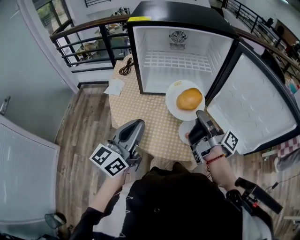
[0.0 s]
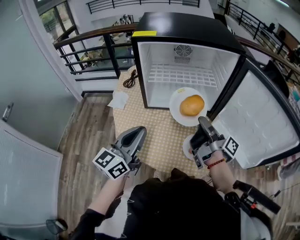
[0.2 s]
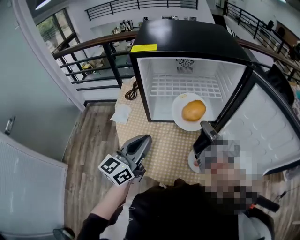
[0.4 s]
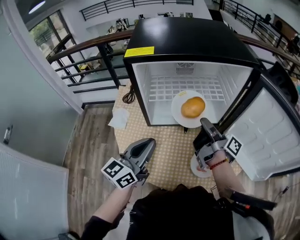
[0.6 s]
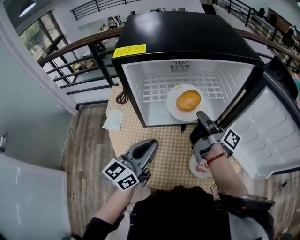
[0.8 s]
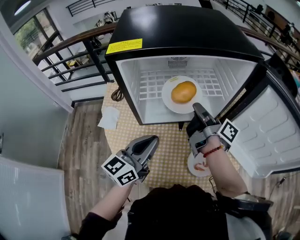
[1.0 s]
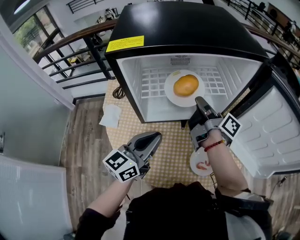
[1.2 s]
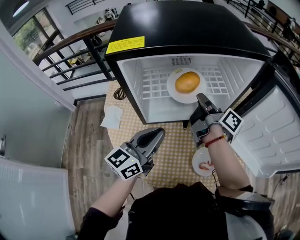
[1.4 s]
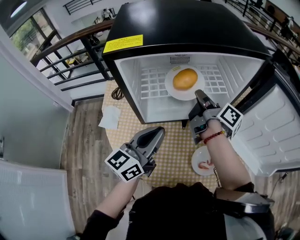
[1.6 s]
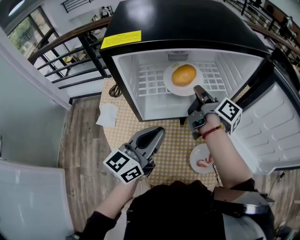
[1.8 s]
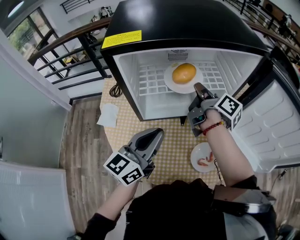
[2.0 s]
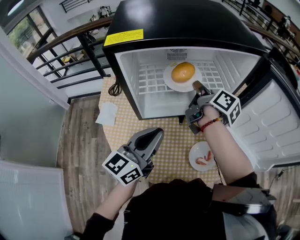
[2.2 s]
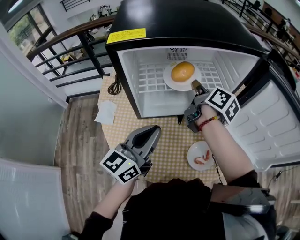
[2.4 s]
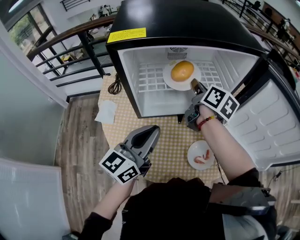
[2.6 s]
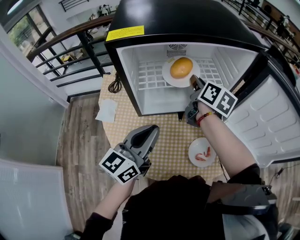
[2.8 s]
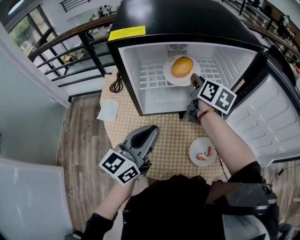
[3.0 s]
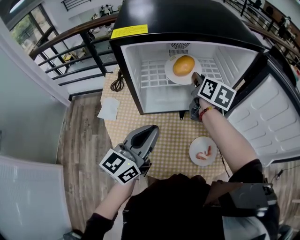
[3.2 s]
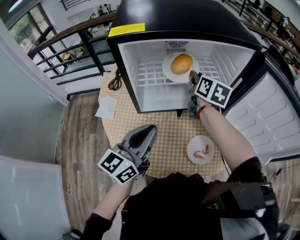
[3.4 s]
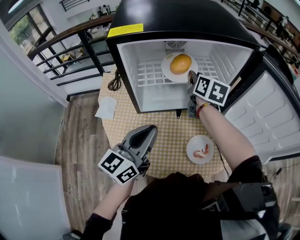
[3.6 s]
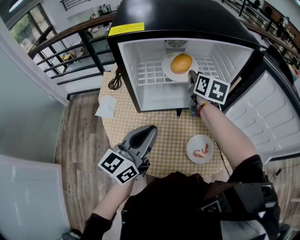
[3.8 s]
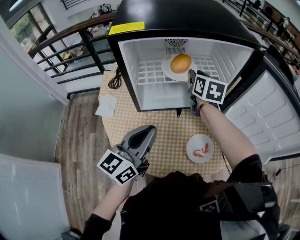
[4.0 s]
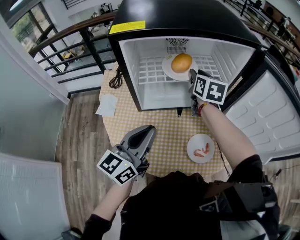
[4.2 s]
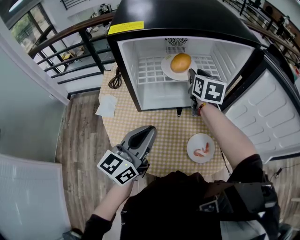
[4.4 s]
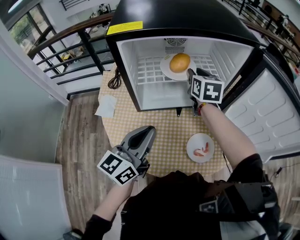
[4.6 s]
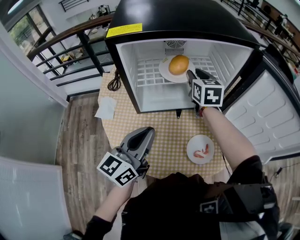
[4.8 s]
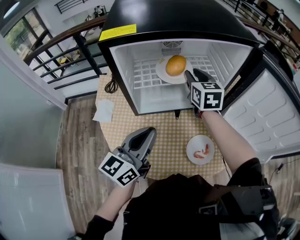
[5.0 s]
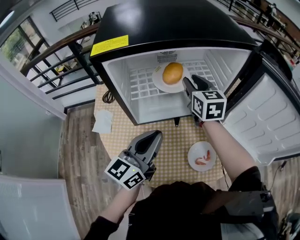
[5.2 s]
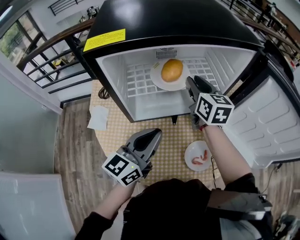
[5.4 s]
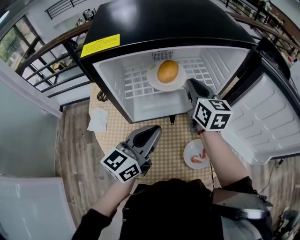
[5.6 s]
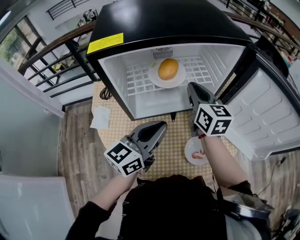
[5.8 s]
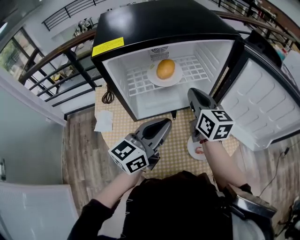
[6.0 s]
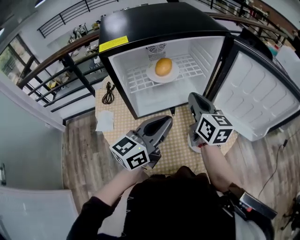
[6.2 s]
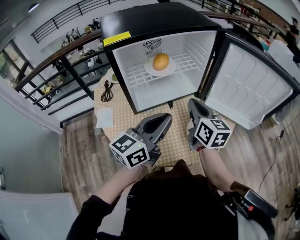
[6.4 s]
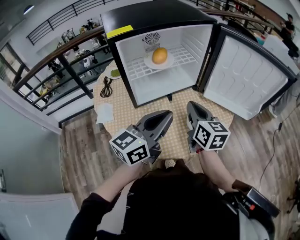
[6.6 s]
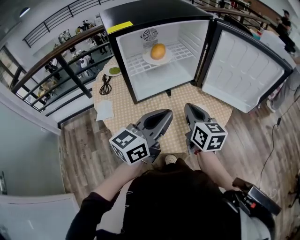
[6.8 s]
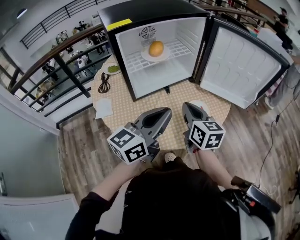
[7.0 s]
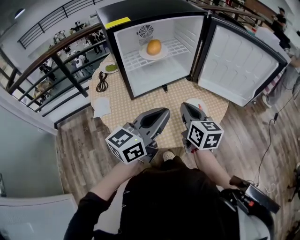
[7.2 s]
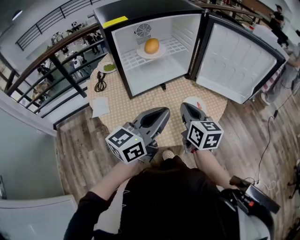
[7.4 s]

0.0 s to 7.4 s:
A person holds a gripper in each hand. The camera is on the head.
0.0 to 1.4 s: Both grippers move forward, roughly 20 cm.
1.4 to 3.0 s: The right gripper twists roughly 50 degrees counterclockwise, seen from behind.
3.0 to 4.4 s: The right gripper swivels roughly 20 degrees.
4.4 to 6.0 s: The left gripper shifts about 5 cm to the right; the right gripper heads backward, covering some 10 cm, and closes.
6.0 to 7.4 s: The right gripper moves backward and to the right, some 15 cm, while the left gripper is displaced backward by roughly 10 cm.

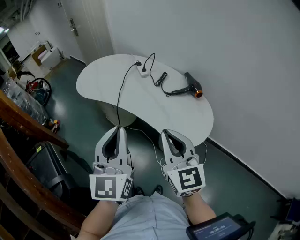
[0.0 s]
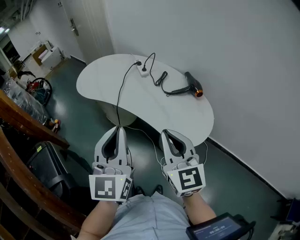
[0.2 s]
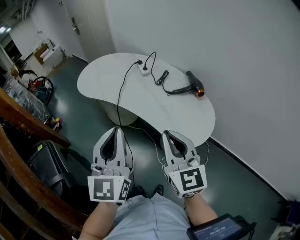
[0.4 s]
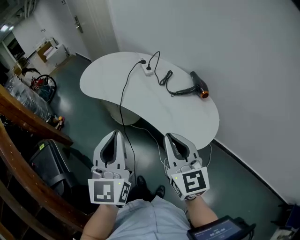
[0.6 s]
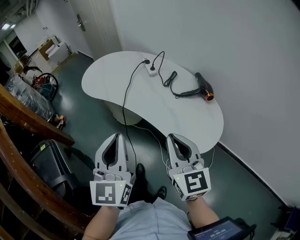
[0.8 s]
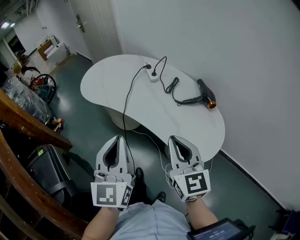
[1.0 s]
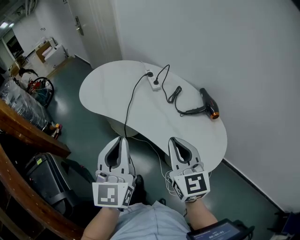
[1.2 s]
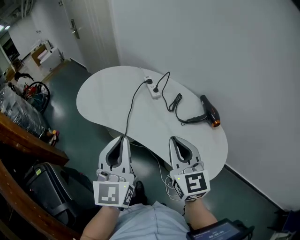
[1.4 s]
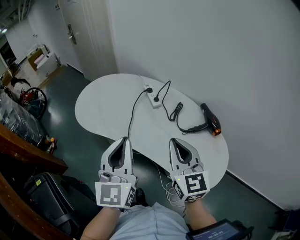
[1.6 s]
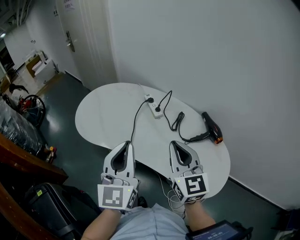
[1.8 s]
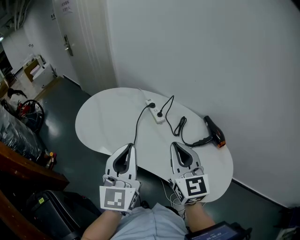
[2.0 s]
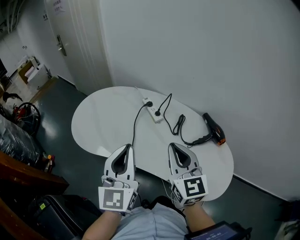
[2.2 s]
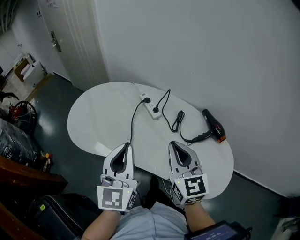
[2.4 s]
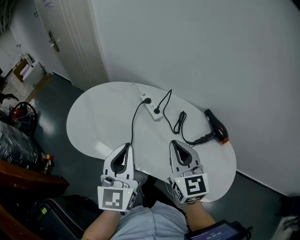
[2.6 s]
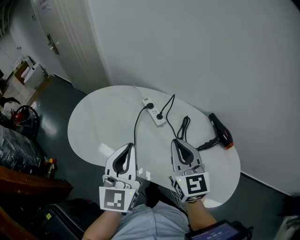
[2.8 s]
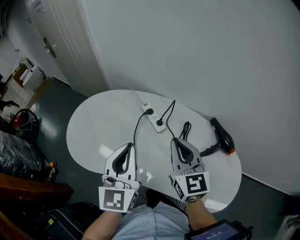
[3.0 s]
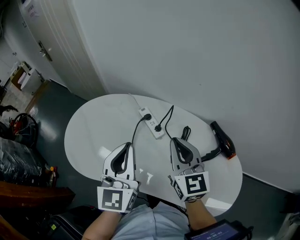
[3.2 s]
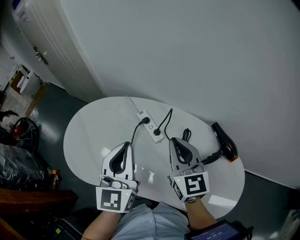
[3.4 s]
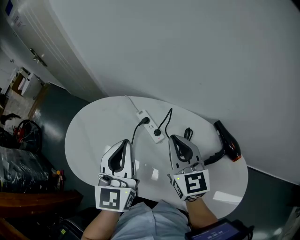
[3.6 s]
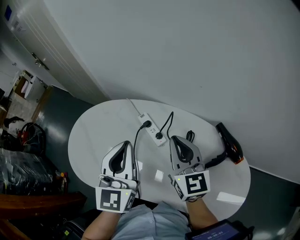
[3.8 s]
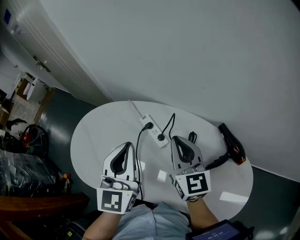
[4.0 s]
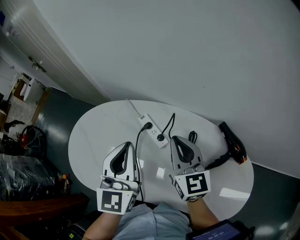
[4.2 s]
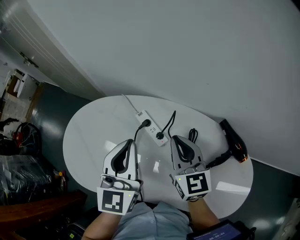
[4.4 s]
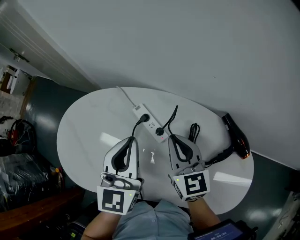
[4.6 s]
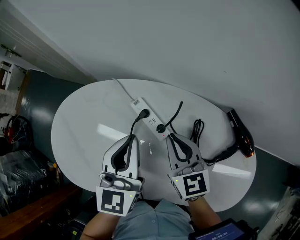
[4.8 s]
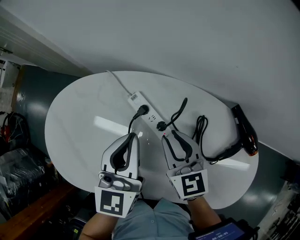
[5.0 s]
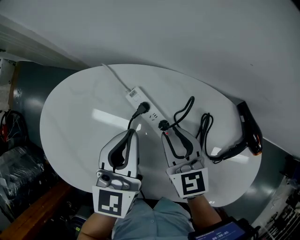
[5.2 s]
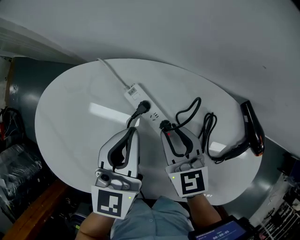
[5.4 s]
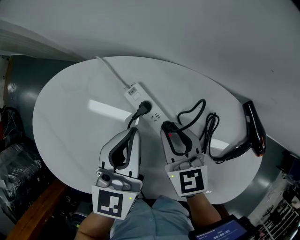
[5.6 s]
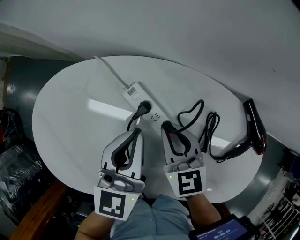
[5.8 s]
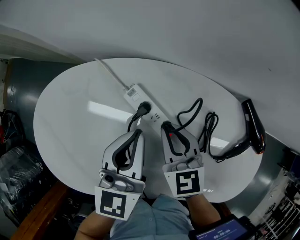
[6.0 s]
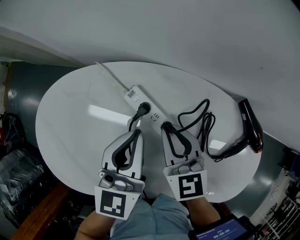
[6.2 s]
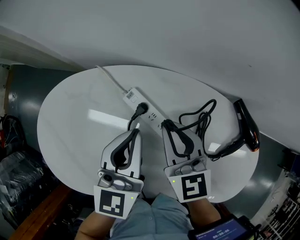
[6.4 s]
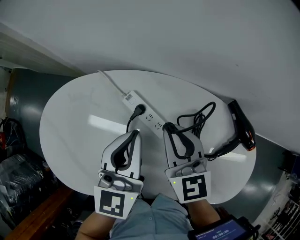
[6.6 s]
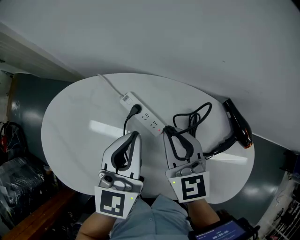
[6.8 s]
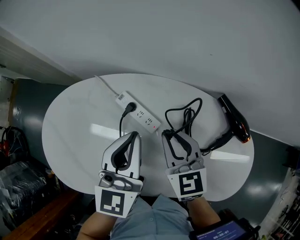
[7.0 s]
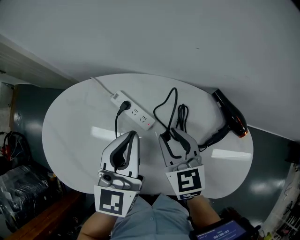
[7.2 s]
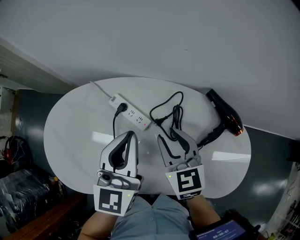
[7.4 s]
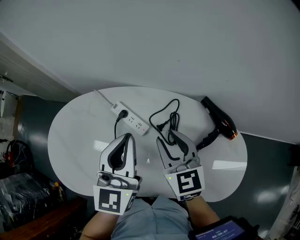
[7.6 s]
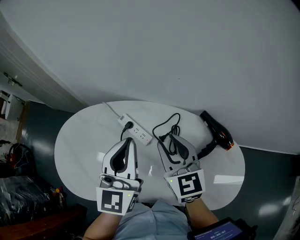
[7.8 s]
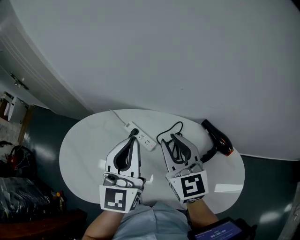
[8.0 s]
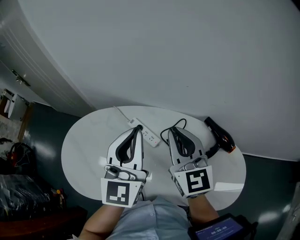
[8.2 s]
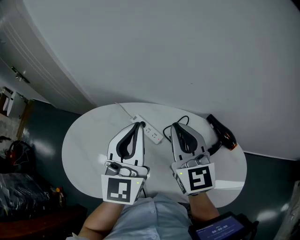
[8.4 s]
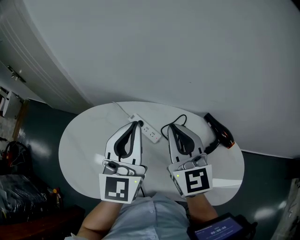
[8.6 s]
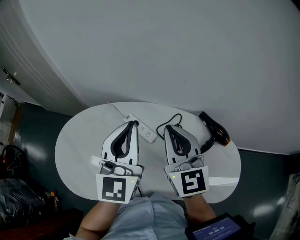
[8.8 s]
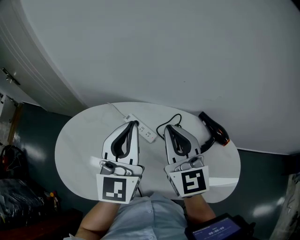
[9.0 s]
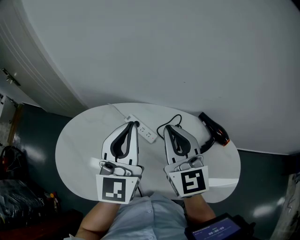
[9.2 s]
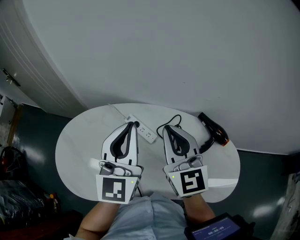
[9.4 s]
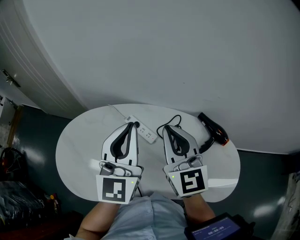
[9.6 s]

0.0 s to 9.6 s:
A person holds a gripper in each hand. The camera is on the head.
0.0 to 1.6 s: The two grippers go roughly 20 cm forward.
1.6 to 3.2 s: Both grippers travel together forward, roughly 20 cm.
3.2 to 4.8 s: The left gripper moves forward and downward, about 15 cm, while the right gripper is displaced downward and forward by about 15 cm.
6.4 to 8.0 s: The right gripper moves upward, to the right and backward, some 15 cm; the left gripper is displaced upward by approximately 15 cm, and rotates roughly 20 degrees.
8.0 to 9.6 s: The right gripper changes place by about 5 cm, and closes its fingers.

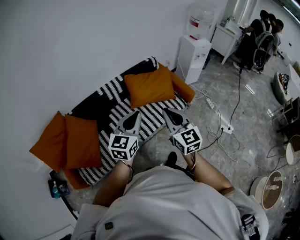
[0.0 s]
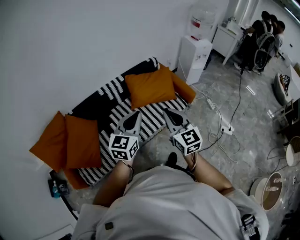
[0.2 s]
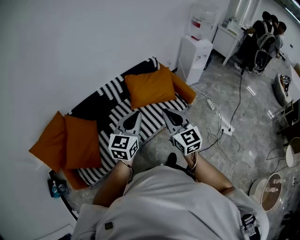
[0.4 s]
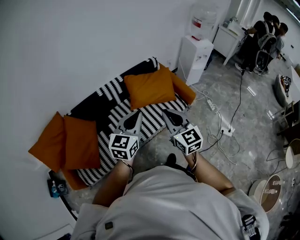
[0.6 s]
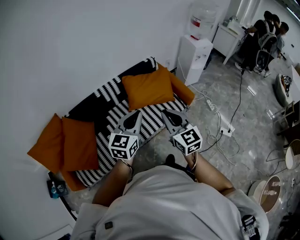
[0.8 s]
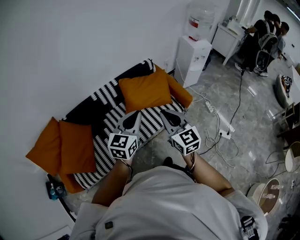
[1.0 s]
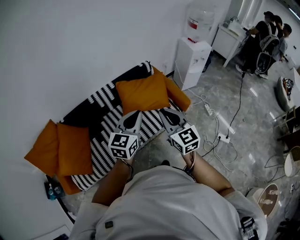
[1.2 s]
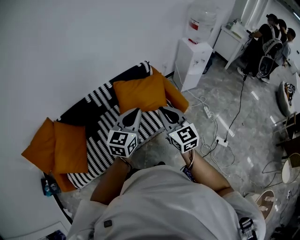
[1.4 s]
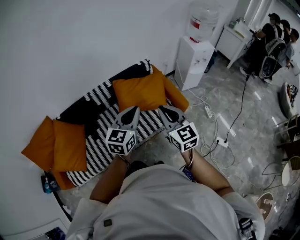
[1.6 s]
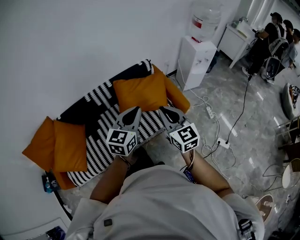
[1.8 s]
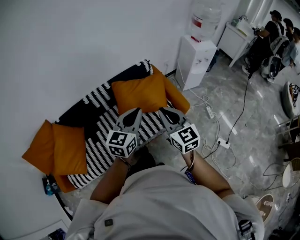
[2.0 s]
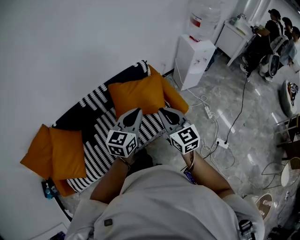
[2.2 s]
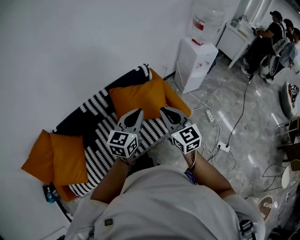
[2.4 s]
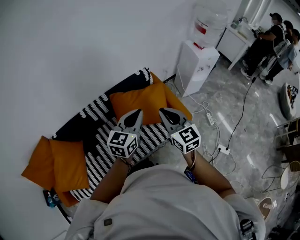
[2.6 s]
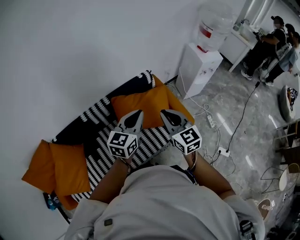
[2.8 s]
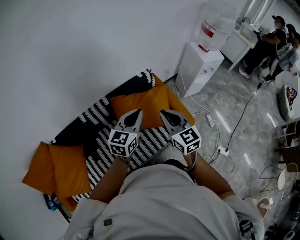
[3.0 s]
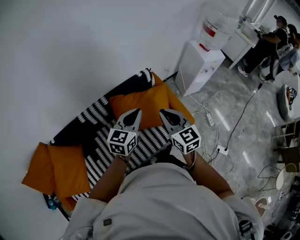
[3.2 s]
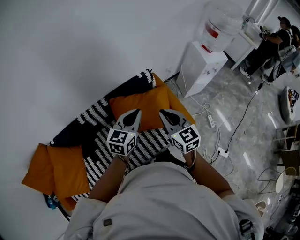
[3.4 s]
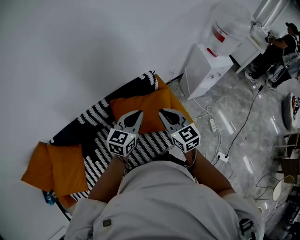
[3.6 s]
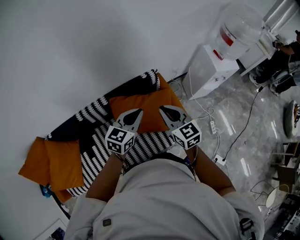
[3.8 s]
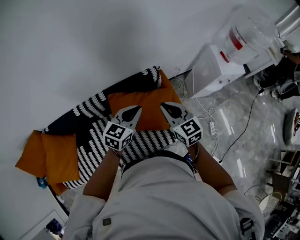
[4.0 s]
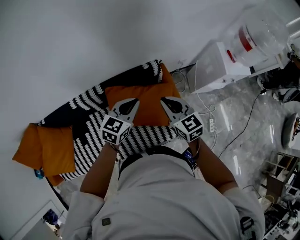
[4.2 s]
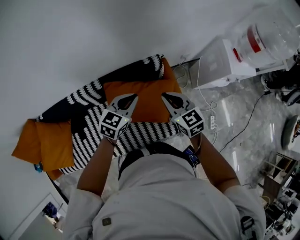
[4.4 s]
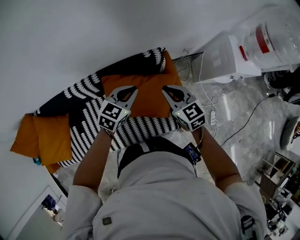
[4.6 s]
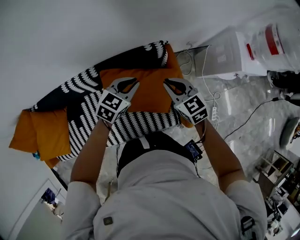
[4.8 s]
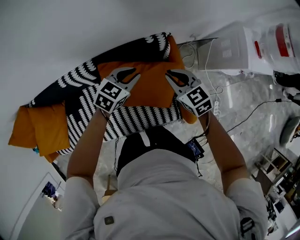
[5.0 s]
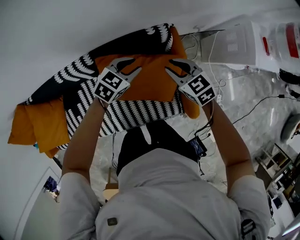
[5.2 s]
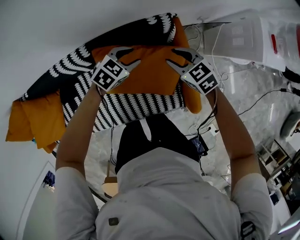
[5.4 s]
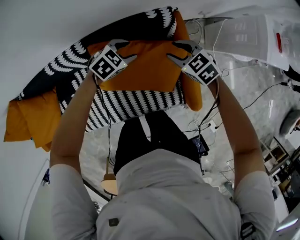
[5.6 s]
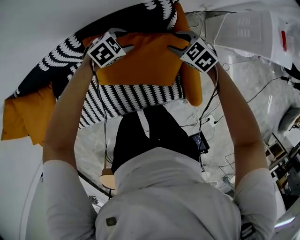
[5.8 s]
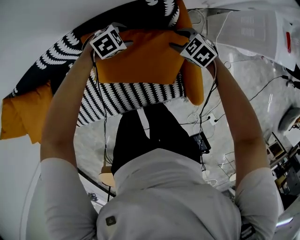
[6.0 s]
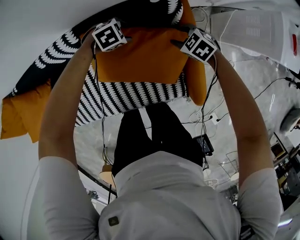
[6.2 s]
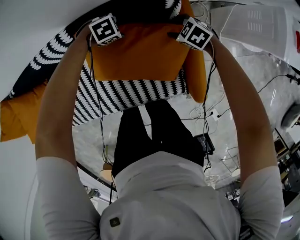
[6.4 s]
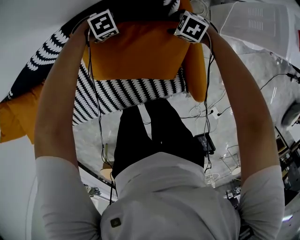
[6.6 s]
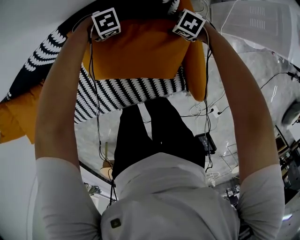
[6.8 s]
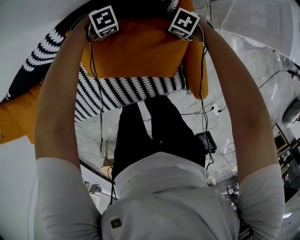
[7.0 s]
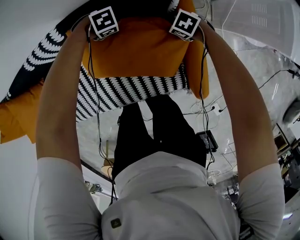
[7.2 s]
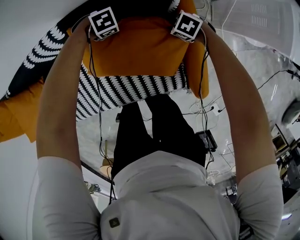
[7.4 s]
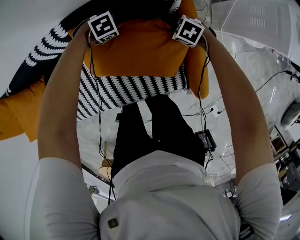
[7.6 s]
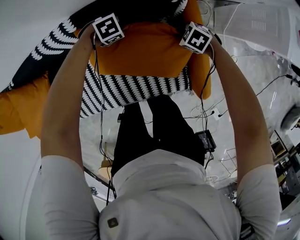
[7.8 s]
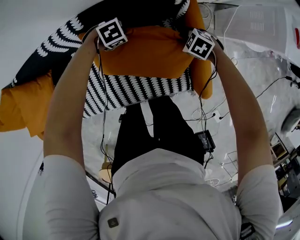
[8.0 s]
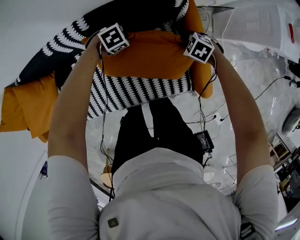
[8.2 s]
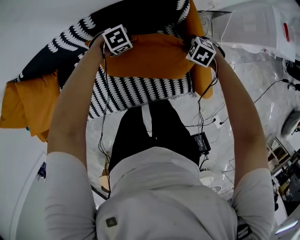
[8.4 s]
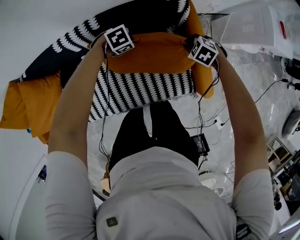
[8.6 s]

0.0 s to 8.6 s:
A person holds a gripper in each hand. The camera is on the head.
0.0 to 1.4 s: The left gripper shifts some 20 cm to the right and forward. Meanwhile the right gripper goes roughly 20 cm forward and to the right.
1.4 to 2.8 s: The two grippers go approximately 25 cm forward.
2.8 to 4.4 s: Both grippers move forward and downward, some 30 cm. The right gripper rotates roughly 30 degrees.
4.4 to 5.8 s: Both grippers move downward, some 30 cm. The left gripper tips its fingers downward by about 30 degrees, and opens up. Meanwhile the right gripper swivels some 40 degrees, and opens up.
5.8 to 7.2 s: Both grippers travel together downward, roughly 15 cm. The left gripper changes its angle by approximately 30 degrees, and closes its fingers, while the right gripper swivels approximately 30 degrees.
7.2 to 8.6 s: The grippers both shift upward by some 15 cm.
